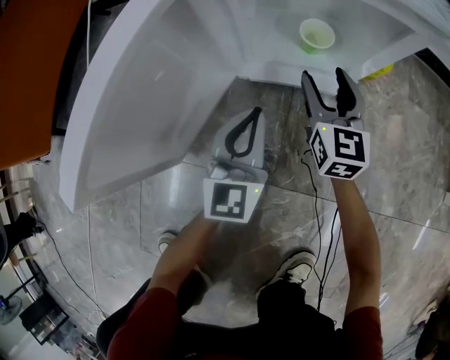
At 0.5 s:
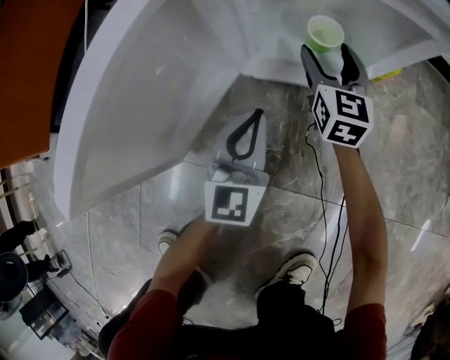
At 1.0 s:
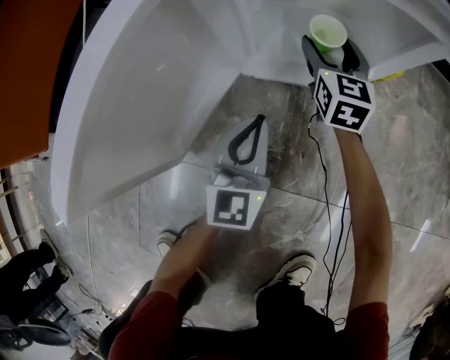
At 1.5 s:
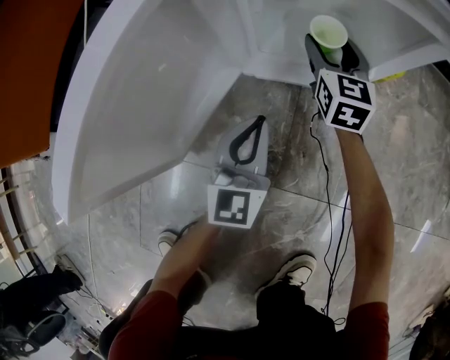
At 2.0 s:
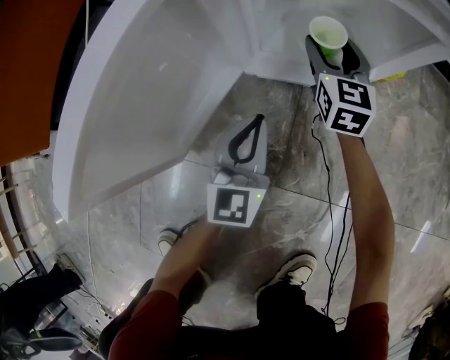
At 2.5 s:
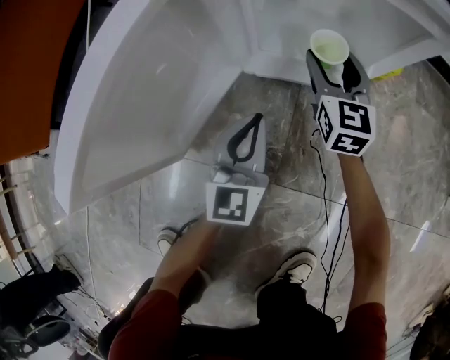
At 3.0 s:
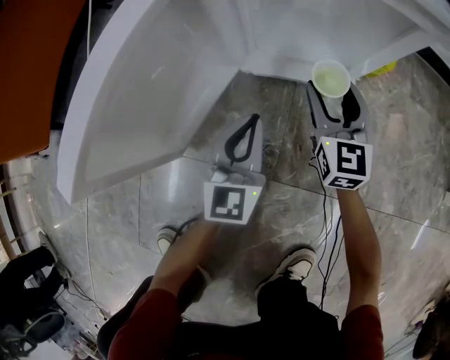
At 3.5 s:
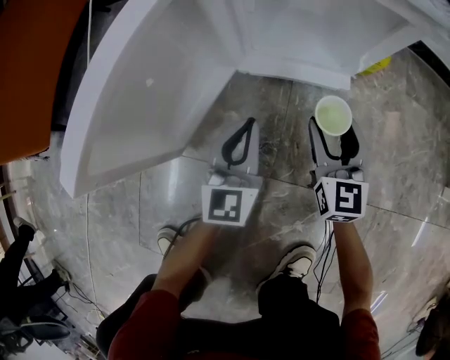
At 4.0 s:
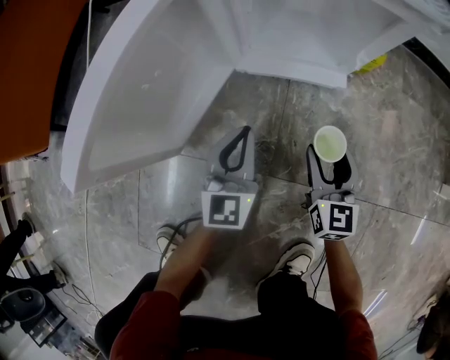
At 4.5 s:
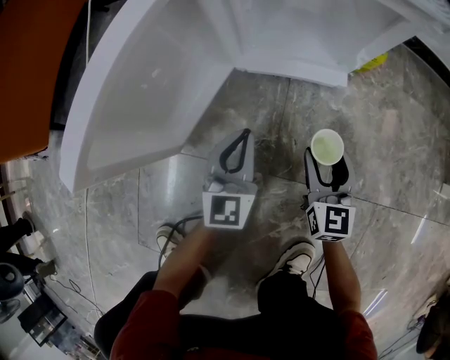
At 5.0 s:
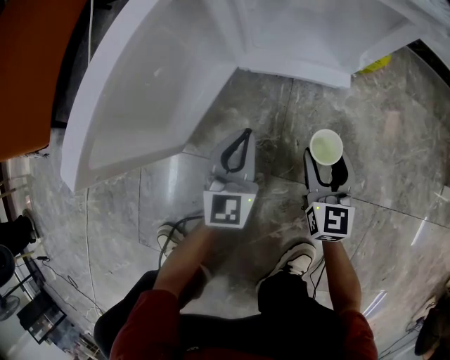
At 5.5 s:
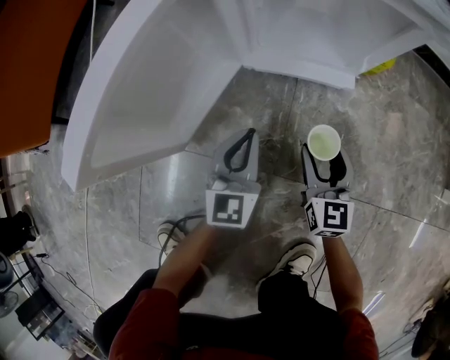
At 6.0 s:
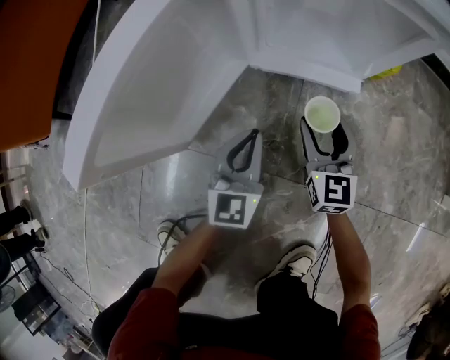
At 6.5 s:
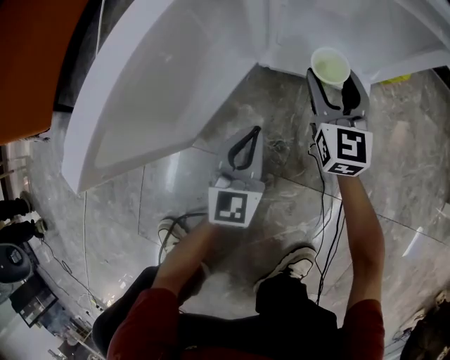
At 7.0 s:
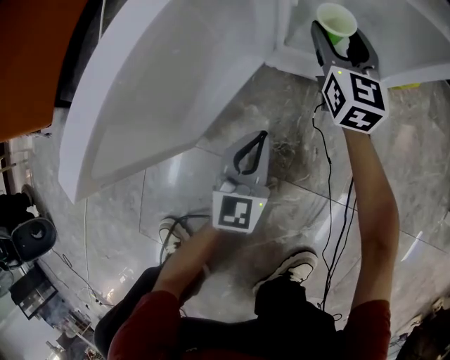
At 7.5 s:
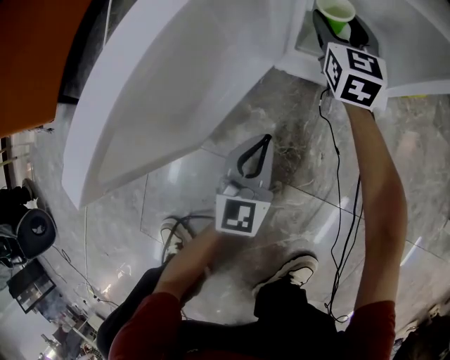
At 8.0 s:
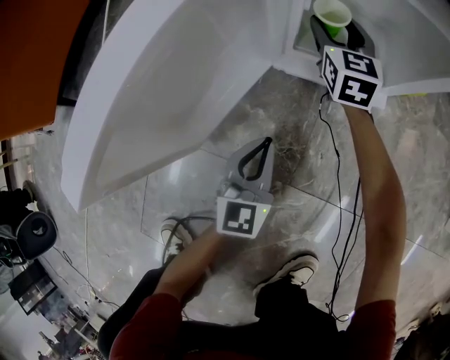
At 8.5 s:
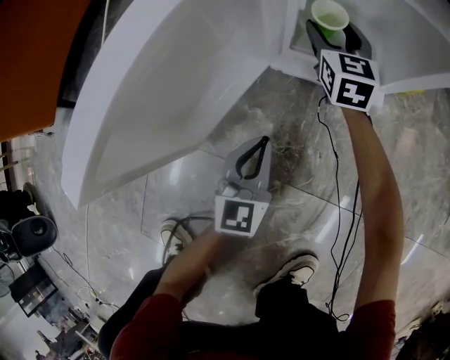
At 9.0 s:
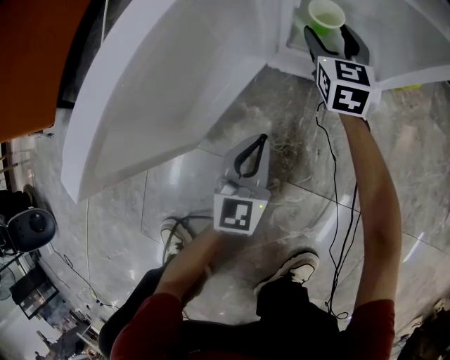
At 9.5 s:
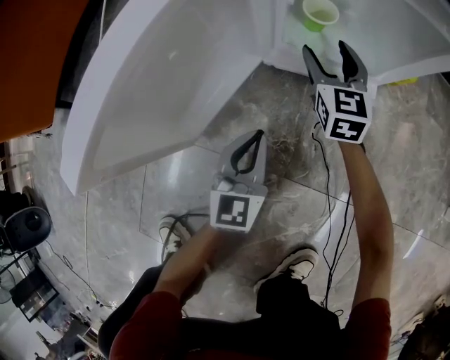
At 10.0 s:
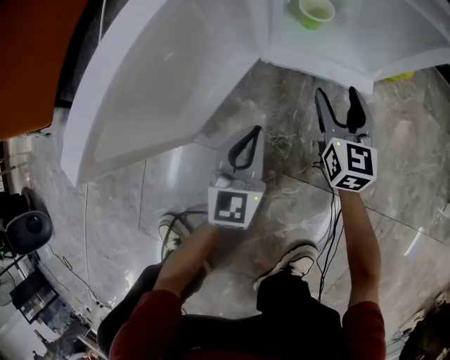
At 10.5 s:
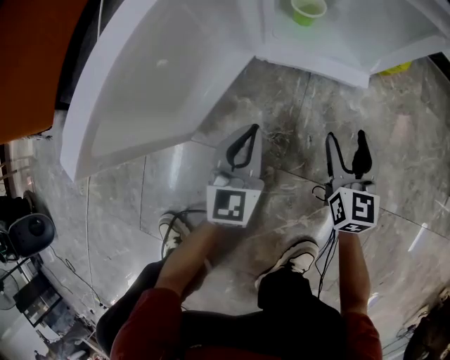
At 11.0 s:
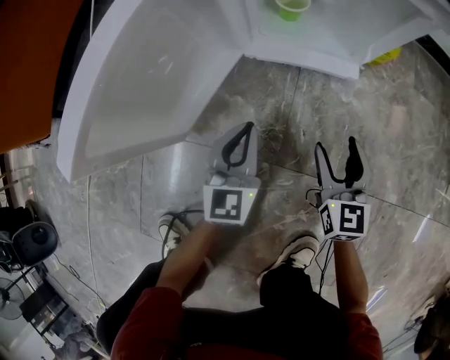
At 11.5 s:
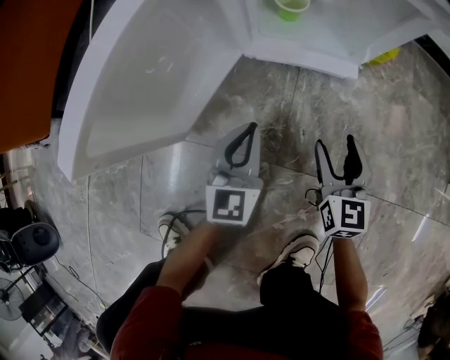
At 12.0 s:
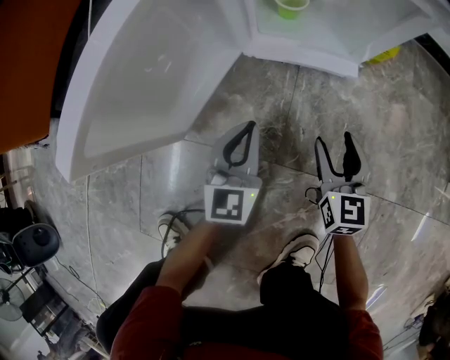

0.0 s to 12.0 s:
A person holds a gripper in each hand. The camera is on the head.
0.0 to 2.0 s: The right gripper is displaced forward by some 10 cm.
2.0 to 4.0 s: The left gripper moves backward, approximately 5 cm; the right gripper moves backward, about 25 cm.
4.0 to 6.0 s: The right gripper goes about 10 cm forward and to the left.
6.0 to 8.0 s: The right gripper goes approximately 25 cm forward.
8.0 to 10.0 s: The right gripper is displaced backward by roughly 20 cm.
10.0 to 12.0 s: The right gripper heads backward, covering some 15 cm.

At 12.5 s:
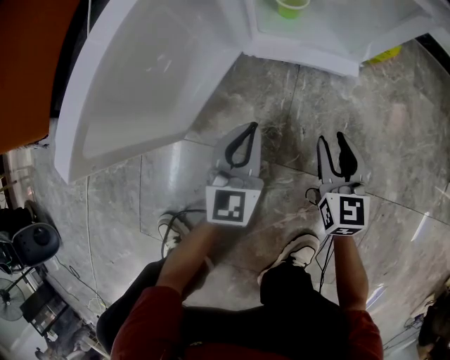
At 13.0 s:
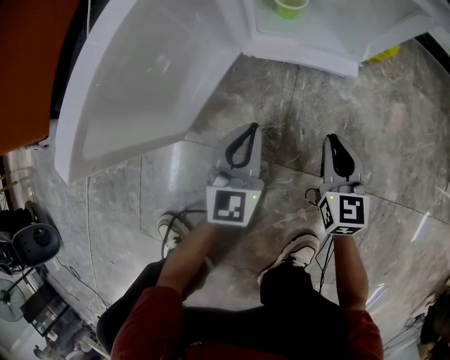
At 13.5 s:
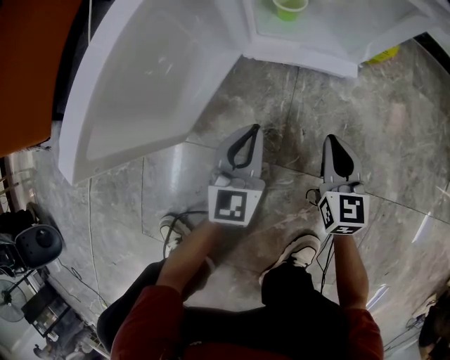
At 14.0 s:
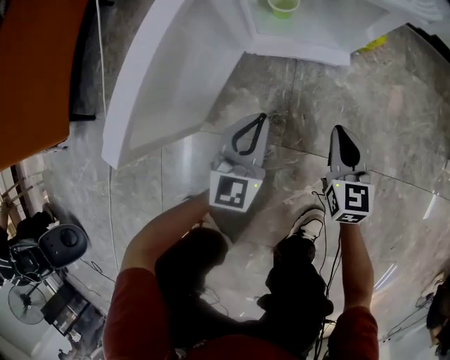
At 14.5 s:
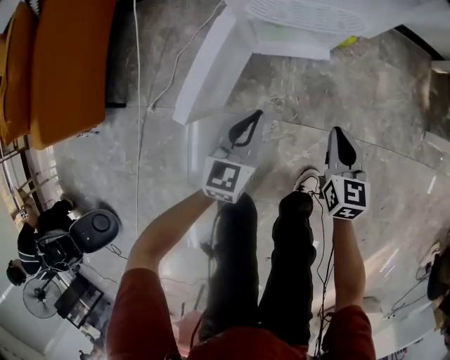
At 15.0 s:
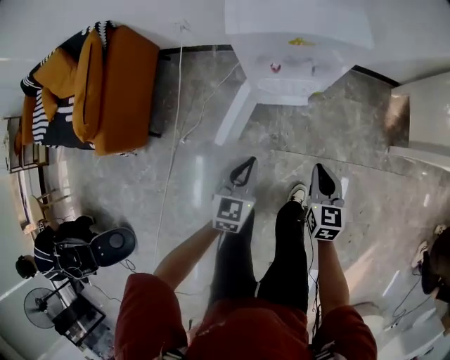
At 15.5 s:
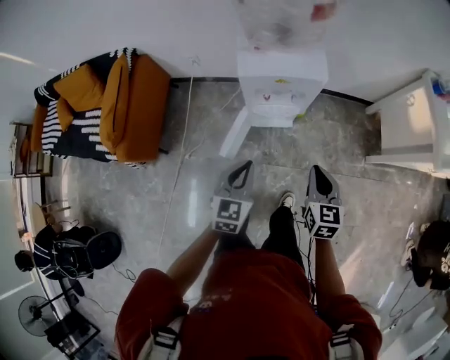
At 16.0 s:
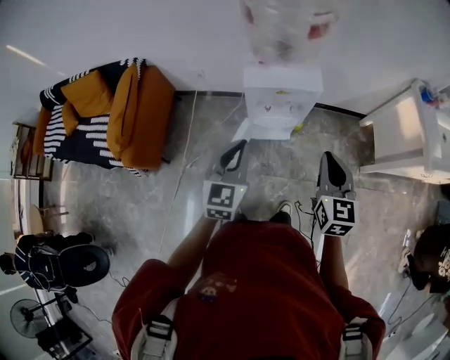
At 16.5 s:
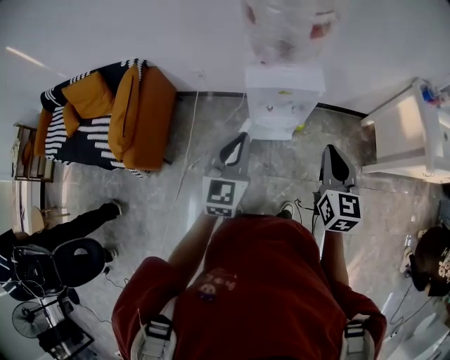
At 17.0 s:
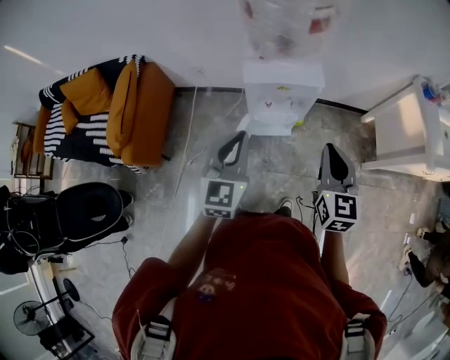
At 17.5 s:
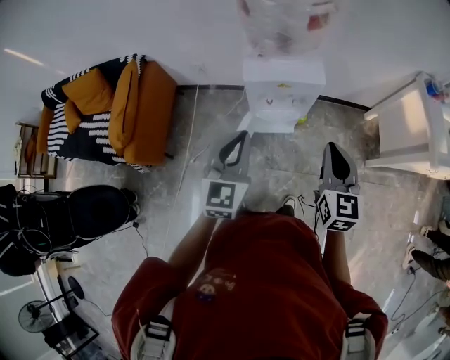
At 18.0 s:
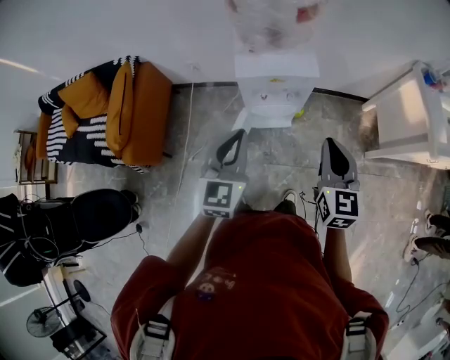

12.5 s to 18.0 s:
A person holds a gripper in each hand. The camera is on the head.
12.5 to 14.5 s: The grippers both shift upward by some 25 cm. The right gripper closes its fingers.
14.5 to 16.0 s: The grippers both shift upward by about 70 cm.
16.0 to 18.0 s: There are only small adjustments of the grippers.

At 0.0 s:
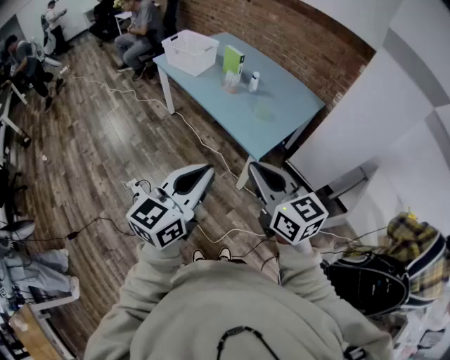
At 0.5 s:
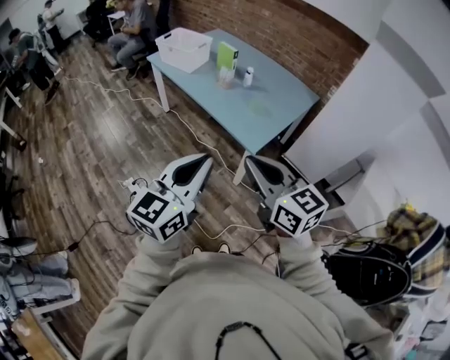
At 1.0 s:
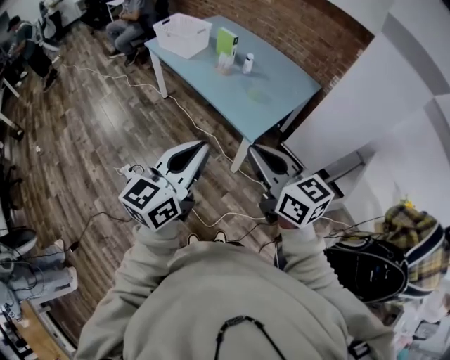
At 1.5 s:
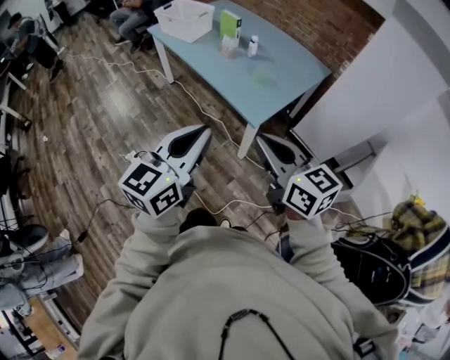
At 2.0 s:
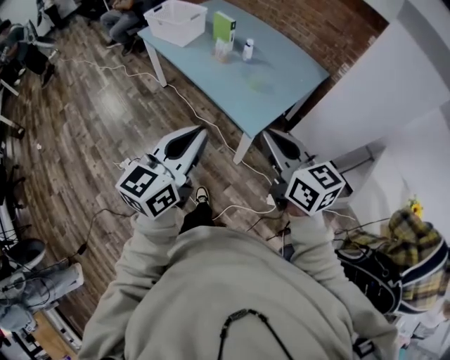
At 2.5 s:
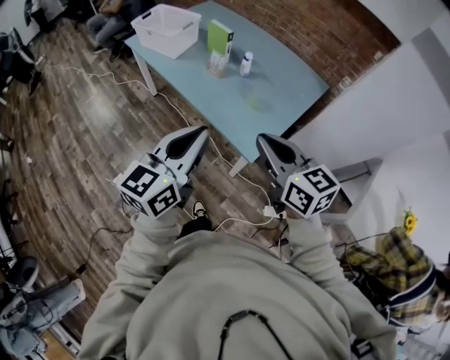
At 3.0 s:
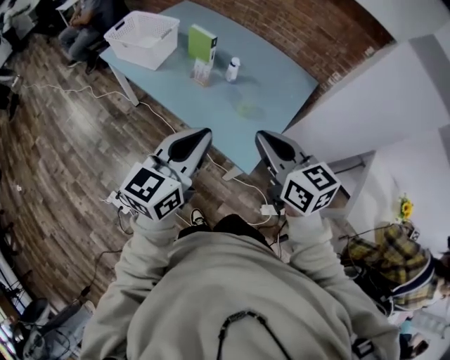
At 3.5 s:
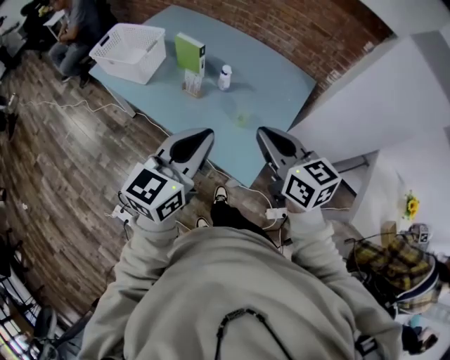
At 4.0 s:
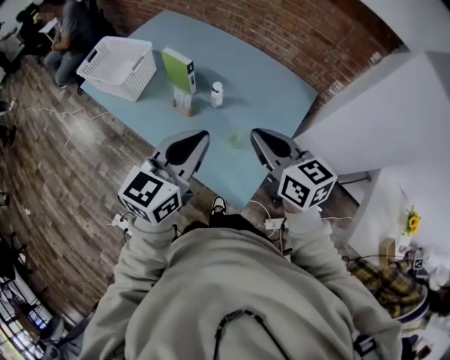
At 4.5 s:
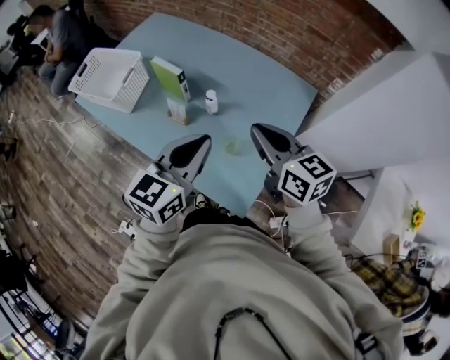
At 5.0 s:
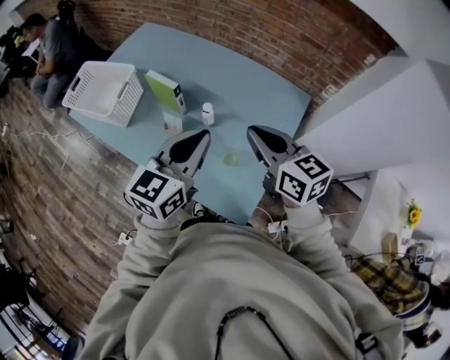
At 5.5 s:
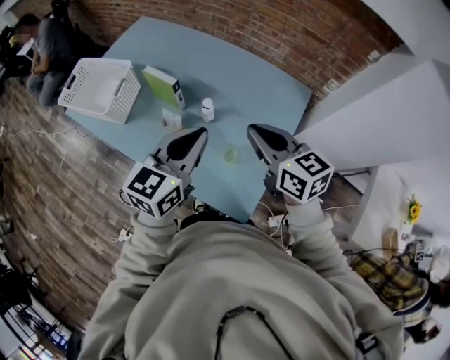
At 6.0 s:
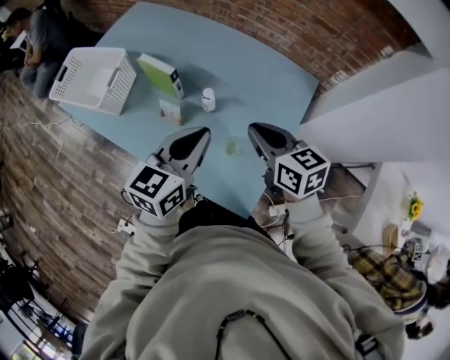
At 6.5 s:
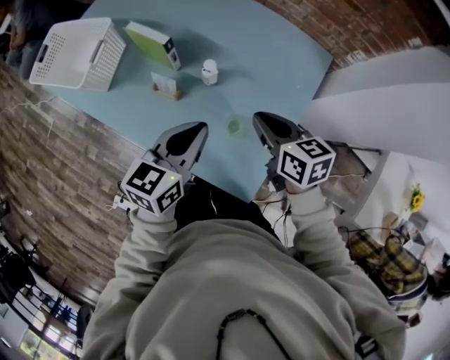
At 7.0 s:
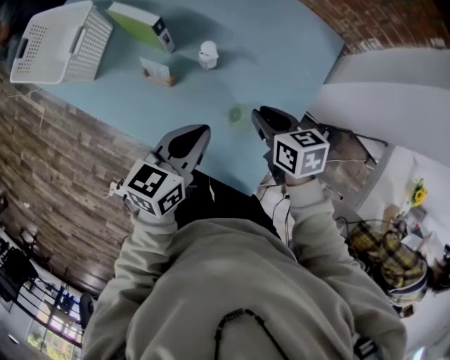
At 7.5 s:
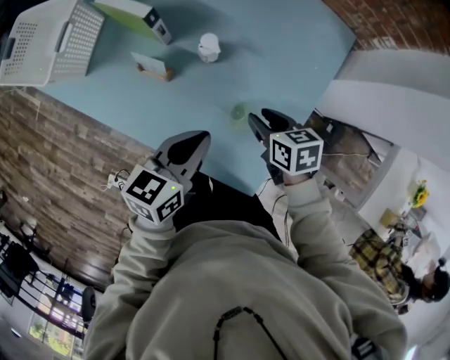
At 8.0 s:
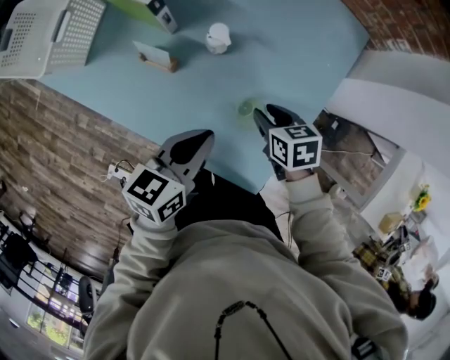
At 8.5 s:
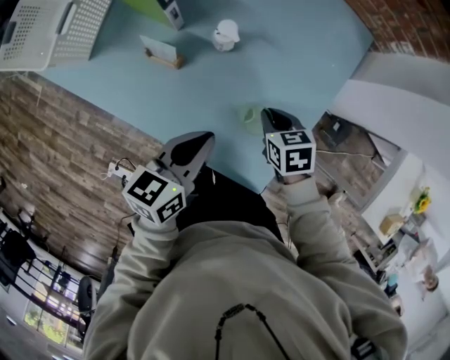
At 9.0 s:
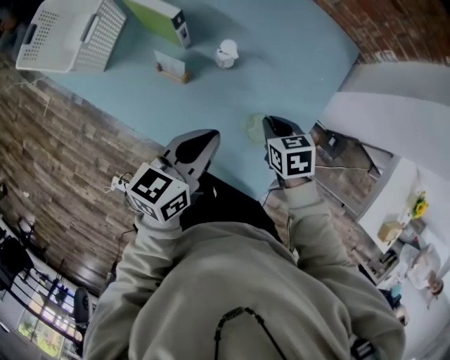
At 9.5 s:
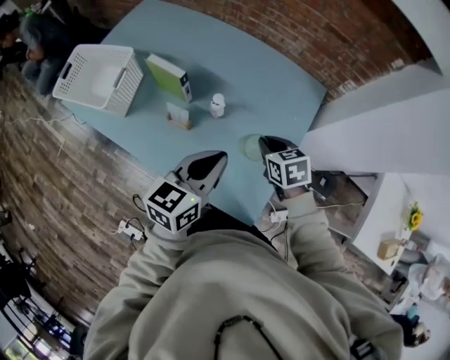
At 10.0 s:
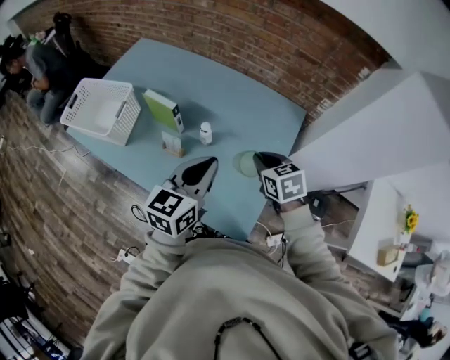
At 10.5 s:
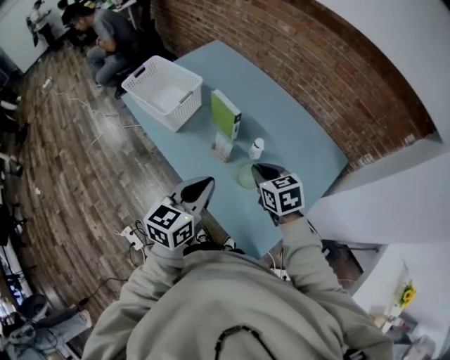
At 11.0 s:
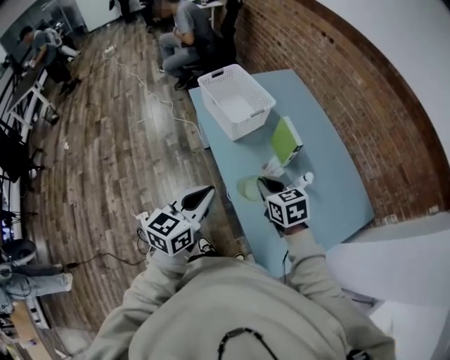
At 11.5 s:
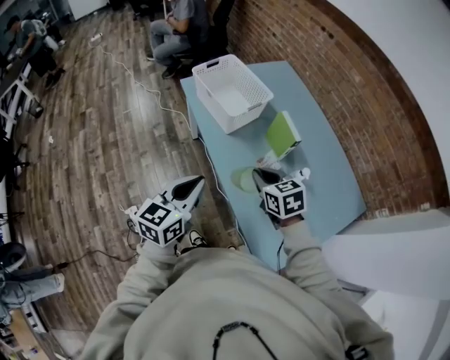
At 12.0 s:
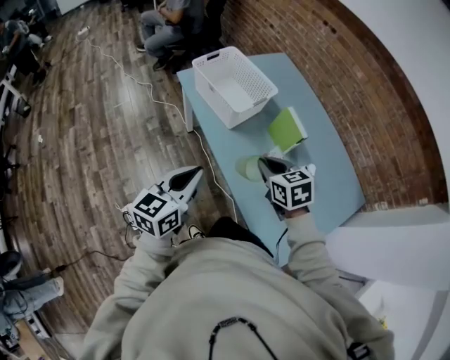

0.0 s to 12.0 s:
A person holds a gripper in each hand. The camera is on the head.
0.0 to 2.0 s: The left gripper heads forward, covering approximately 10 cm, while the right gripper goes roughly 15 cm forward and to the right.
2.0 to 4.0 s: Both grippers are carried forward, approximately 40 cm.
4.0 to 6.0 s: The two grippers go roughly 15 cm forward and downward.
6.0 to 8.0 s: Both grippers travel together downward, about 25 cm. The right gripper points its fingers approximately 30 degrees further downward, and opens its fingers; the left gripper changes its angle by about 30 degrees.
8.0 to 10.0 s: The grippers both shift upward by some 25 cm. The left gripper changes its angle by roughly 30 degrees; the right gripper changes its angle by some 20 degrees, and closes.
10.0 to 12.0 s: The left gripper moves some 40 cm, and rotates about 30 degrees; the right gripper ends up approximately 40 cm from where it was, and changes its angle by about 40 degrees.
